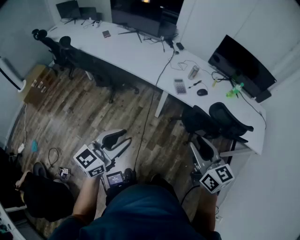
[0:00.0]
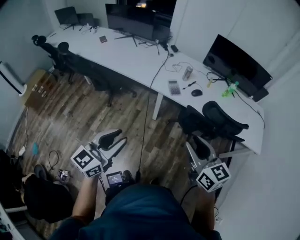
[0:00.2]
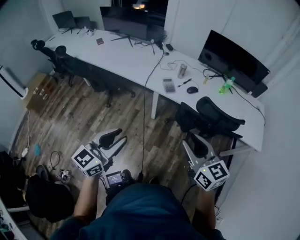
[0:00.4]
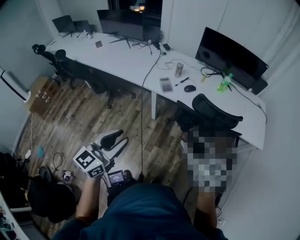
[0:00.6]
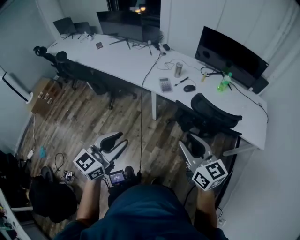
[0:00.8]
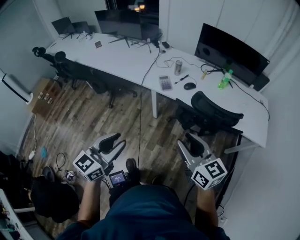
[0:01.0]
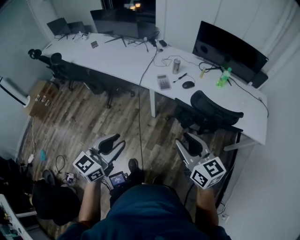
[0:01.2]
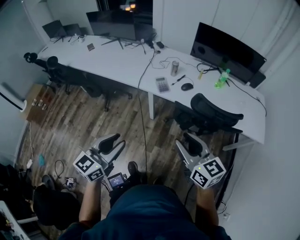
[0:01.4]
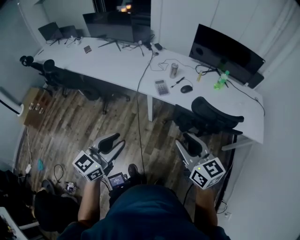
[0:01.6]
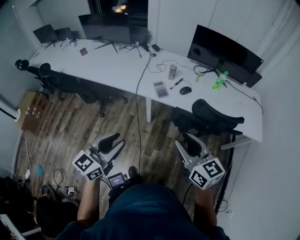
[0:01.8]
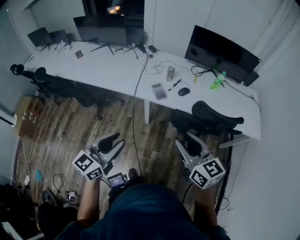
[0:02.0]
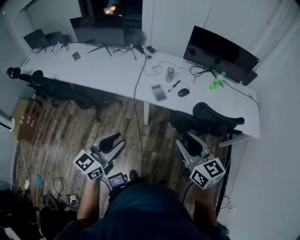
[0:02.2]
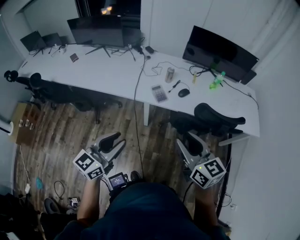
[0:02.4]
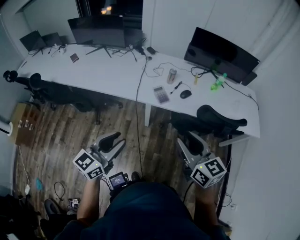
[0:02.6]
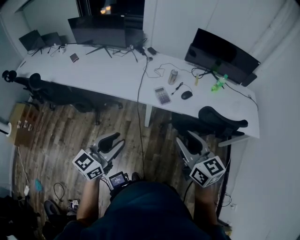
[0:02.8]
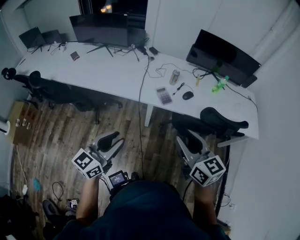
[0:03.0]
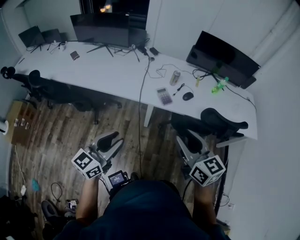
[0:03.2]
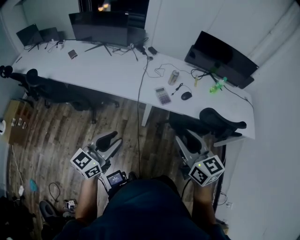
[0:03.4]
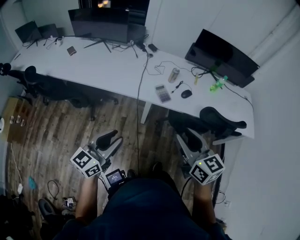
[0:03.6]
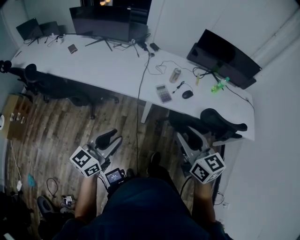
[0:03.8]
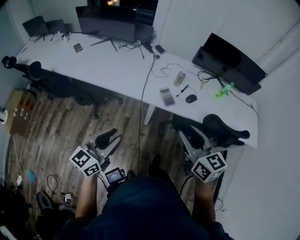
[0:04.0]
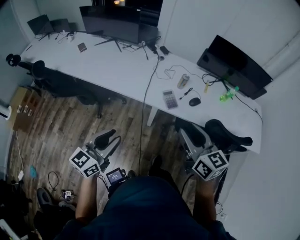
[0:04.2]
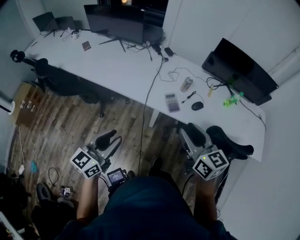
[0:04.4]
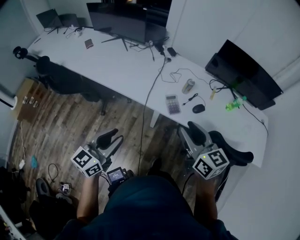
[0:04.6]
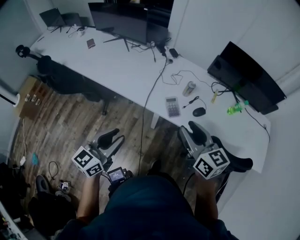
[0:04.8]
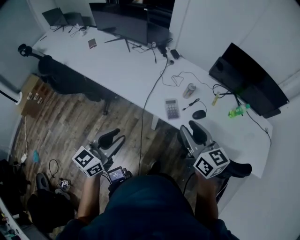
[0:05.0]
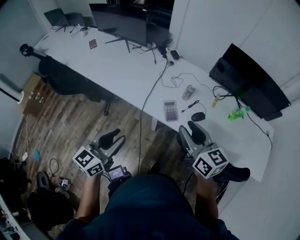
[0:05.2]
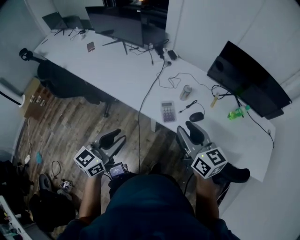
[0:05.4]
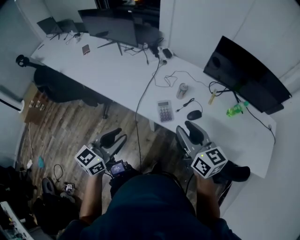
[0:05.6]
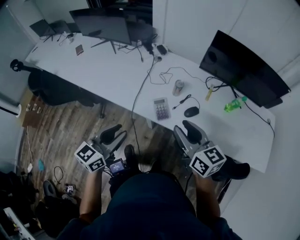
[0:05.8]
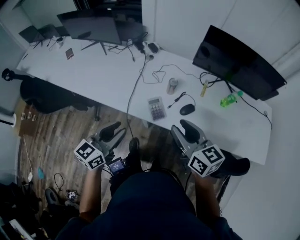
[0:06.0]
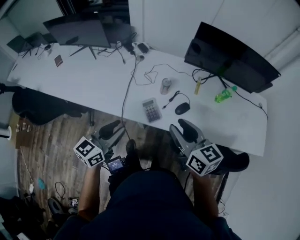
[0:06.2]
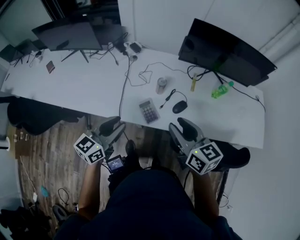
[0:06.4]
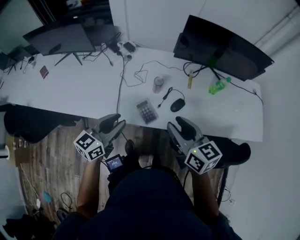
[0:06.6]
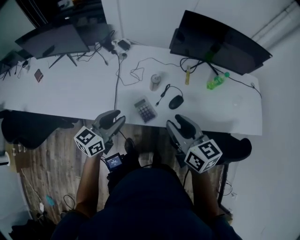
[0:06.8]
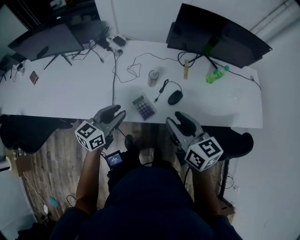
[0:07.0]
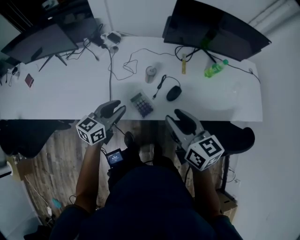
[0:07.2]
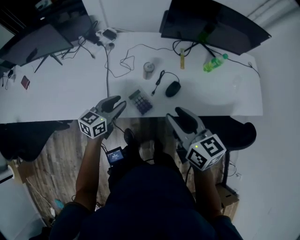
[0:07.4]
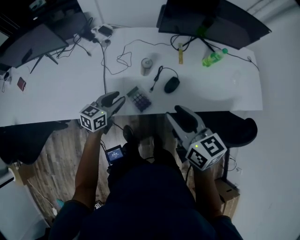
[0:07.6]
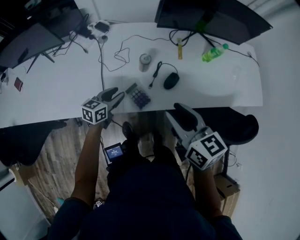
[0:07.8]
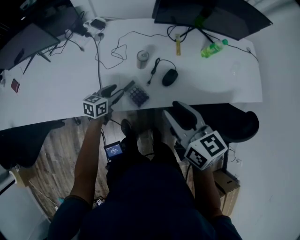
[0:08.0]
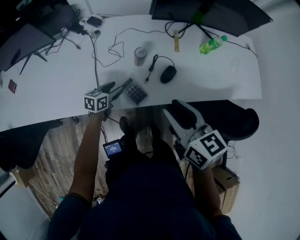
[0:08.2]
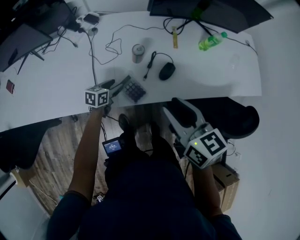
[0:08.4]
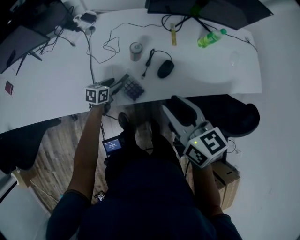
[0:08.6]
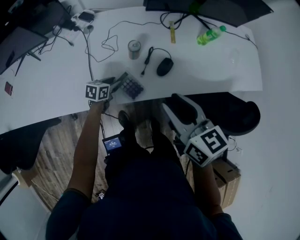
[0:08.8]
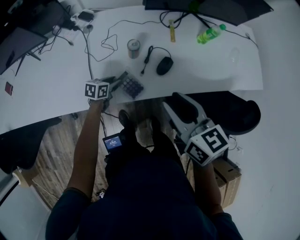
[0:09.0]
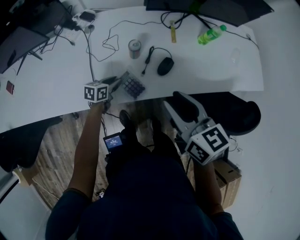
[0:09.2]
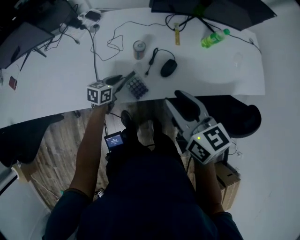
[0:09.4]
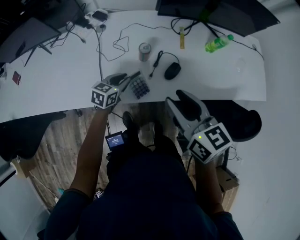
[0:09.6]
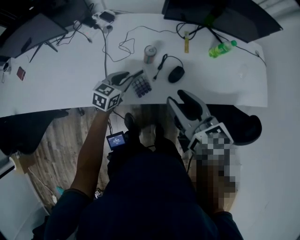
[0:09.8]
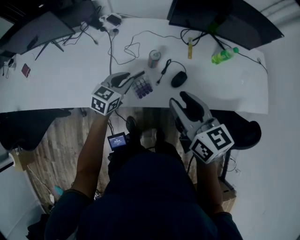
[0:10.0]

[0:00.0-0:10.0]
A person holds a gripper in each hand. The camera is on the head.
0:00.0 to 0:01.4: Both grippers travel together to the right, about 10 cm.
0:01.4 to 0:02.8: Both grippers move to the left and forward, roughly 15 cm.
0:02.8 to 0:04.2: The right gripper shifts about 10 cm forward, while the left gripper changes place by roughly 5 cm.
0:04.2 to 0:05.8: The left gripper goes approximately 20 cm to the right and forward. Meanwhile the right gripper is displaced forward and to the right by approximately 20 cm.
0:05.8 to 0:07.2: The left gripper is displaced forward and downward by about 25 cm, and changes its angle by approximately 30 degrees; the right gripper shifts about 5 cm forward, and changes its angle by roughly 20 degrees.
0:07.2 to 0:08.6: The left gripper shifts roughly 25 cm downward, rotates some 30 degrees, and opens its fingers.
0:08.6 to 0:10.0: The left gripper is displaced upward by about 15 cm, turns by roughly 30 degrees, and closes its fingers.

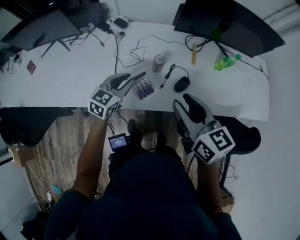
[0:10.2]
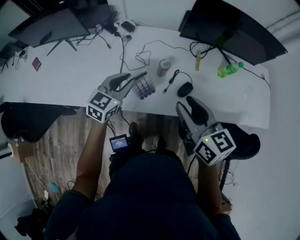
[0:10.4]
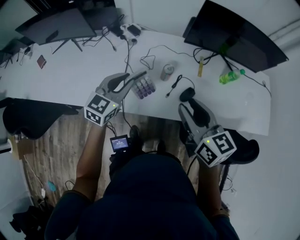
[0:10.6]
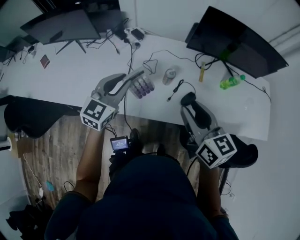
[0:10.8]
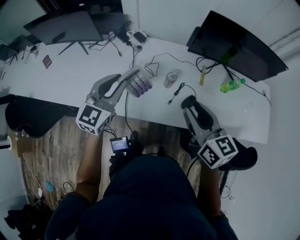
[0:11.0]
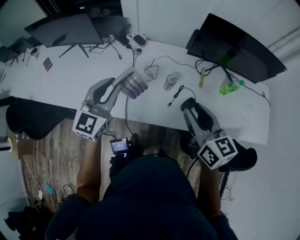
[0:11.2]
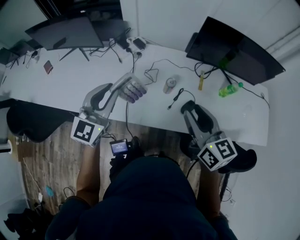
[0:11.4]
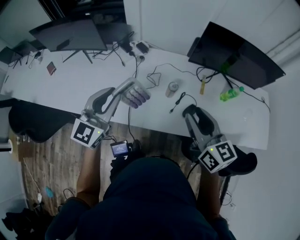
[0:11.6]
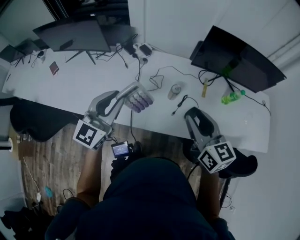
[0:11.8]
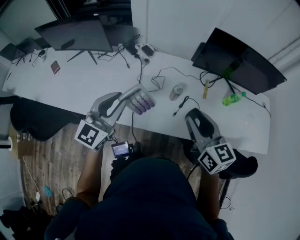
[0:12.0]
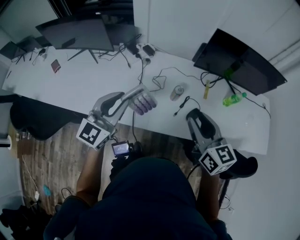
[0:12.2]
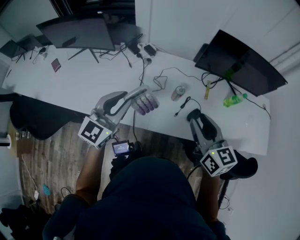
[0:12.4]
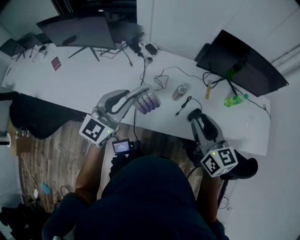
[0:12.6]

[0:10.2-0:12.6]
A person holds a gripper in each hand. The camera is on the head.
0:10.2 to 0:11.4: The left gripper moves upward and to the left, some 20 cm, and rotates about 30 degrees.
0:11.4 to 0:12.6: The grippers make only small movements.

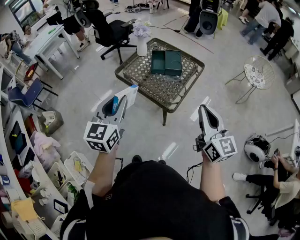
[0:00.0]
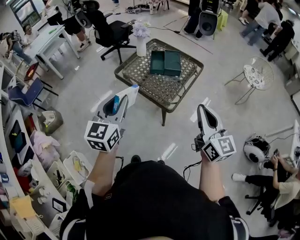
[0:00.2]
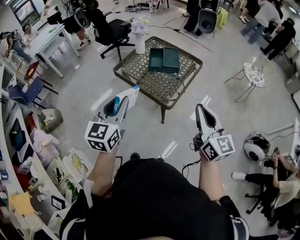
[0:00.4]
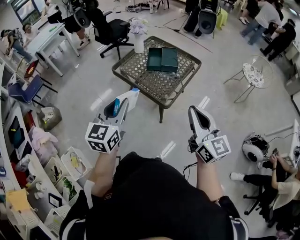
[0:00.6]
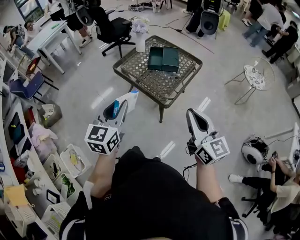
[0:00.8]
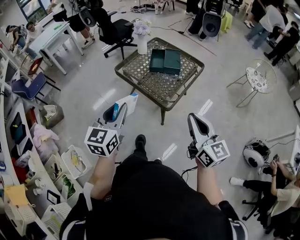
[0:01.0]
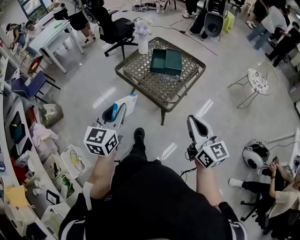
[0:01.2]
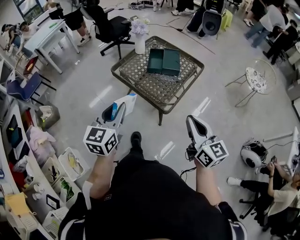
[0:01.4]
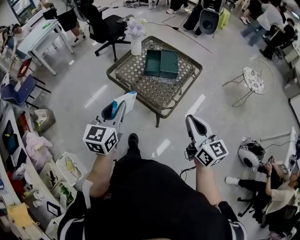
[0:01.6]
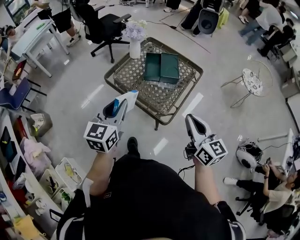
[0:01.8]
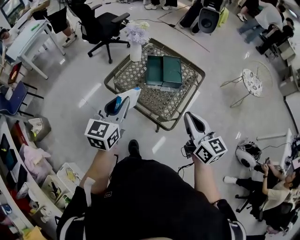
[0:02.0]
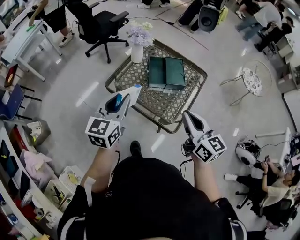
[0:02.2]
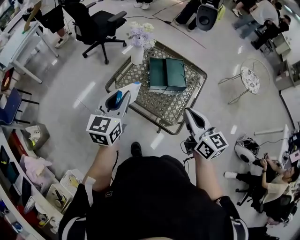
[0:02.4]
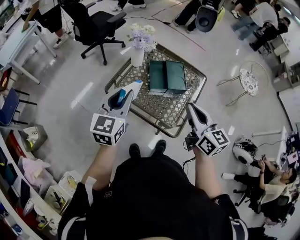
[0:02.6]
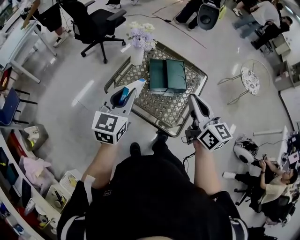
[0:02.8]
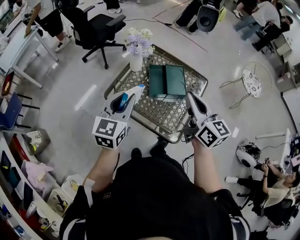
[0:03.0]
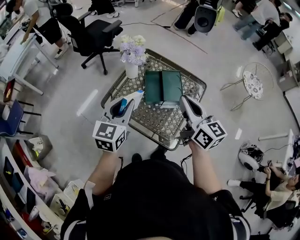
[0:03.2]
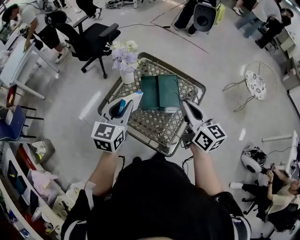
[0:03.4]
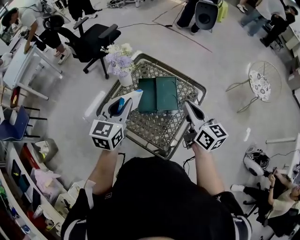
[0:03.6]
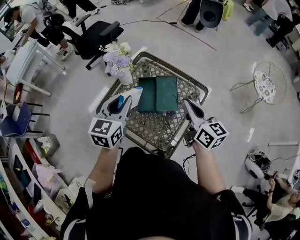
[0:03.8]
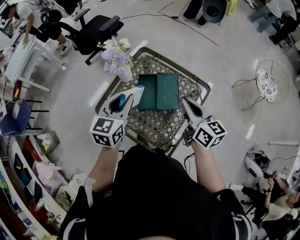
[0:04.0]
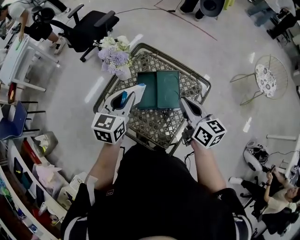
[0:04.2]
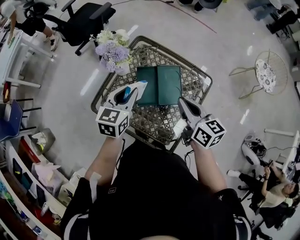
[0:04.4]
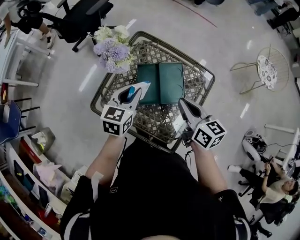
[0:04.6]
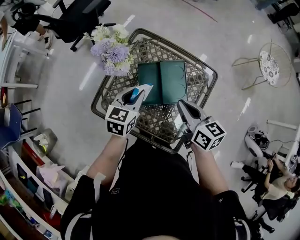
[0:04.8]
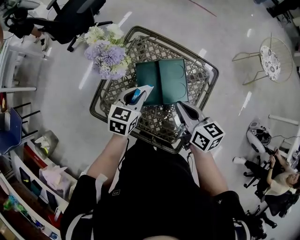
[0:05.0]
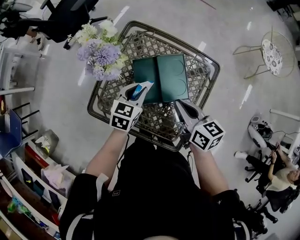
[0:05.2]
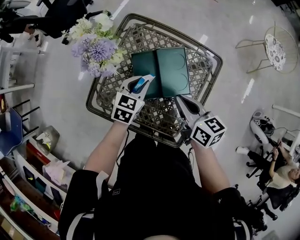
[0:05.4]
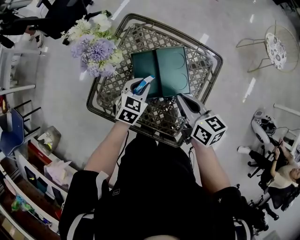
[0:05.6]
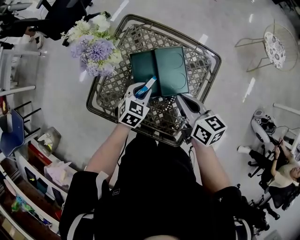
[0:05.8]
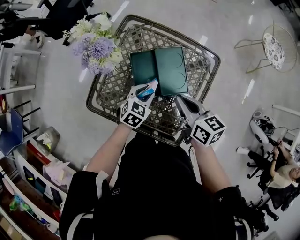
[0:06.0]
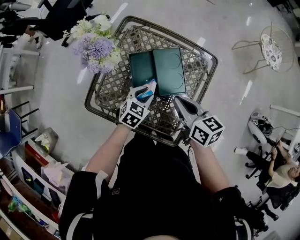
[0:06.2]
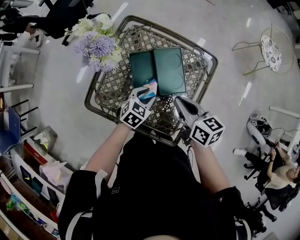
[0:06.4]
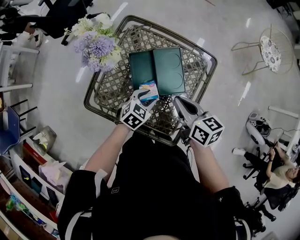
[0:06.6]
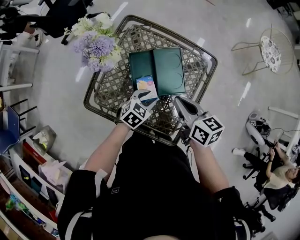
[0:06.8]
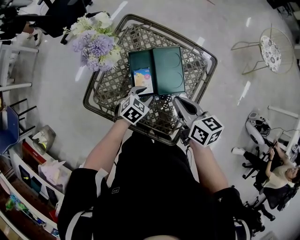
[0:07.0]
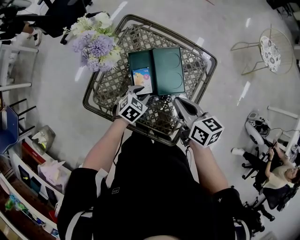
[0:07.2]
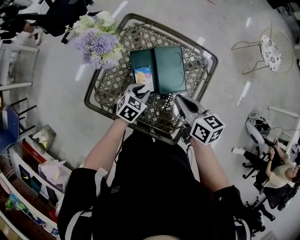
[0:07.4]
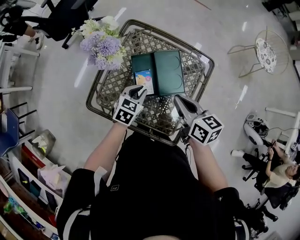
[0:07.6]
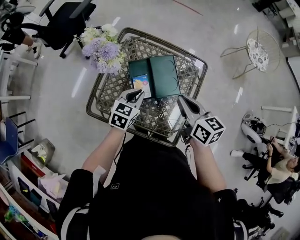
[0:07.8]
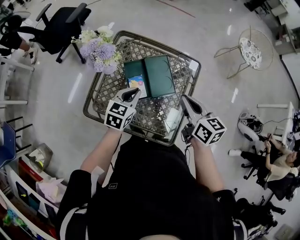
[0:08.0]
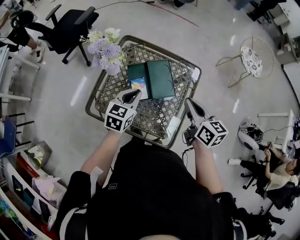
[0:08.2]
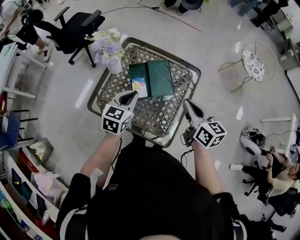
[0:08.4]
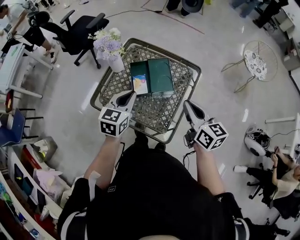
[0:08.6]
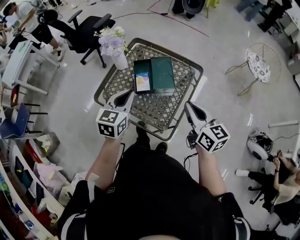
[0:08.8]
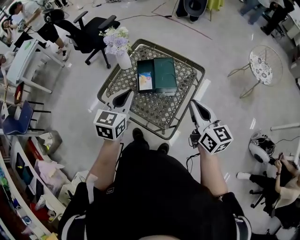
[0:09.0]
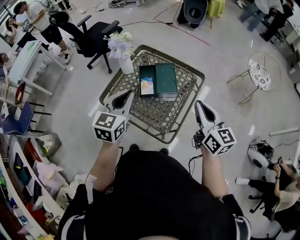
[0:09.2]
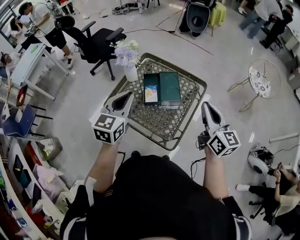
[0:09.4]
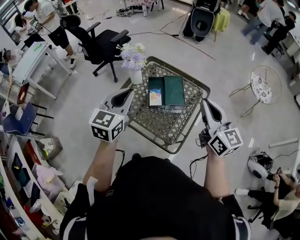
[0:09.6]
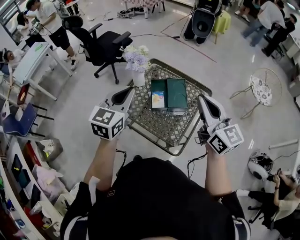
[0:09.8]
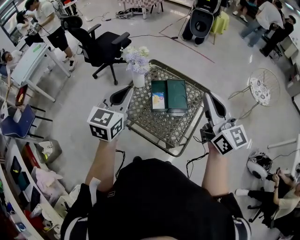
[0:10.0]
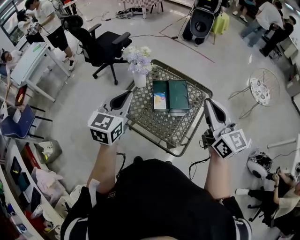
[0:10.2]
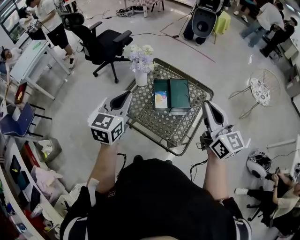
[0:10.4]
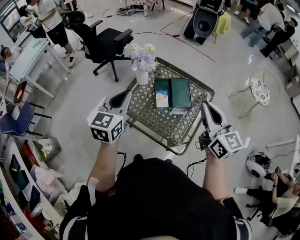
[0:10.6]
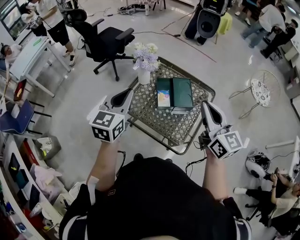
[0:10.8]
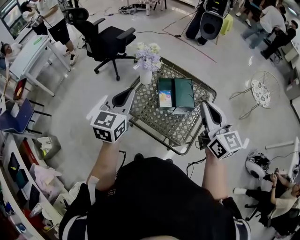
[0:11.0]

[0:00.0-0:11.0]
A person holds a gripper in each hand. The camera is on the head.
0:00.0 to 0:01.6: The left gripper goes some 10 cm downward and forward, while the right gripper travels downward by roughly 5 cm.
0:01.6 to 0:03.2: The two grippers go about 30 cm forward.
0:03.2 to 0:04.8: The right gripper shifts roughly 20 cm downward and forward, and rotates roughly 20 degrees, while the left gripper shifts about 25 cm forward, downward and to the right, and changes its angle by approximately 20 degrees.
0:04.8 to 0:06.2: The right gripper goes some 5 cm downward, while the left gripper heads downward and to the right, covering approximately 15 cm, and rotates approximately 30 degrees.
0:06.2 to 0:07.8: Both grippers travel together upward, about 5 cm. The left gripper closes up.
0:07.8 to 0:09.4: The right gripper heads upward, backward and to the right, covering about 20 cm, and swivels roughly 30 degrees. Meanwhile the left gripper shifts roughly 30 cm upward and backward, and changes its angle by about 30 degrees.
0:09.4 to 0:11.0: Both grippers move to the left, roughly 15 cm.
